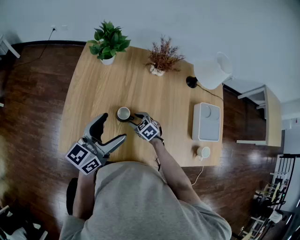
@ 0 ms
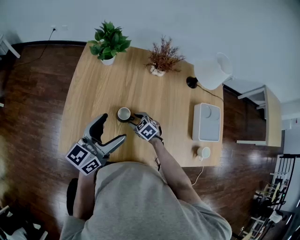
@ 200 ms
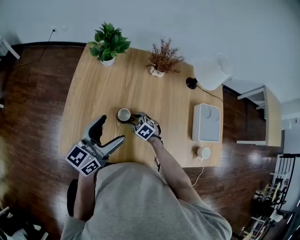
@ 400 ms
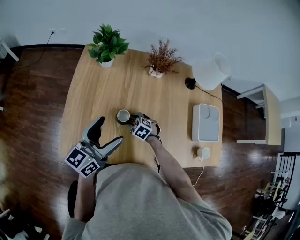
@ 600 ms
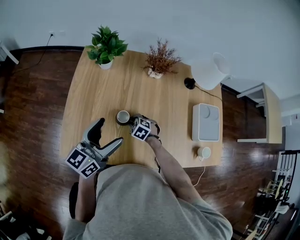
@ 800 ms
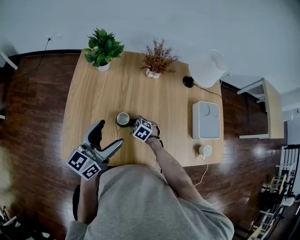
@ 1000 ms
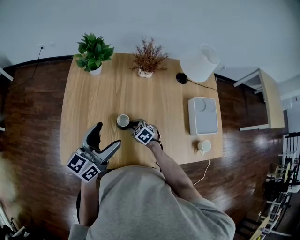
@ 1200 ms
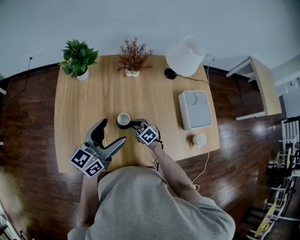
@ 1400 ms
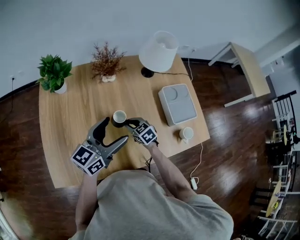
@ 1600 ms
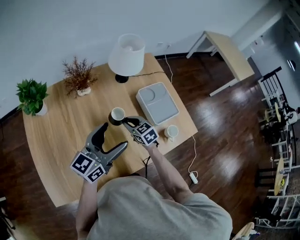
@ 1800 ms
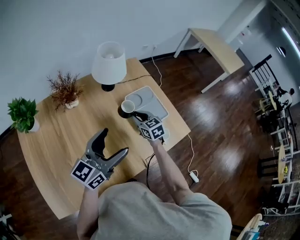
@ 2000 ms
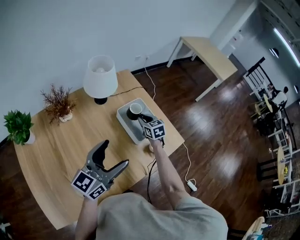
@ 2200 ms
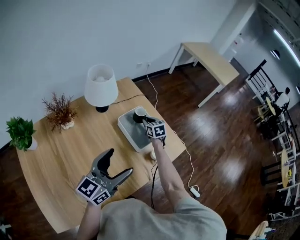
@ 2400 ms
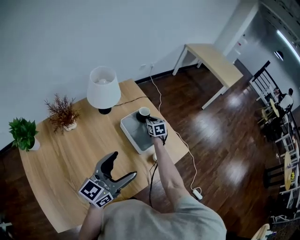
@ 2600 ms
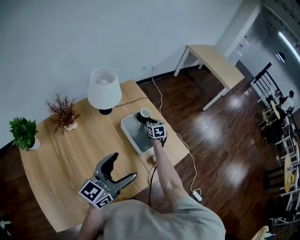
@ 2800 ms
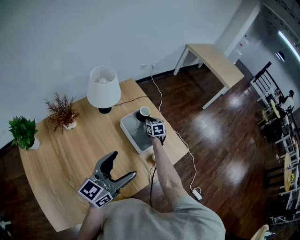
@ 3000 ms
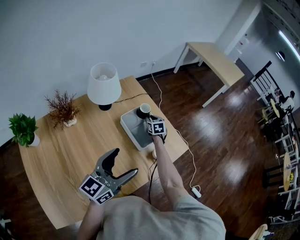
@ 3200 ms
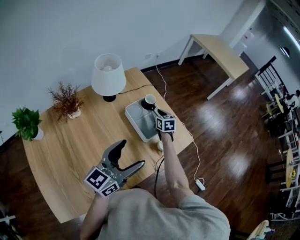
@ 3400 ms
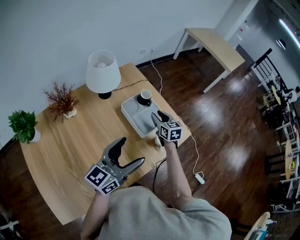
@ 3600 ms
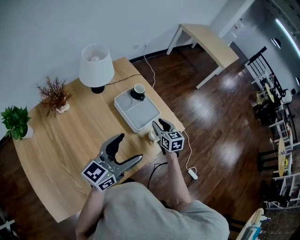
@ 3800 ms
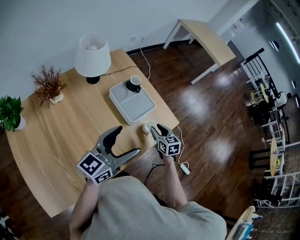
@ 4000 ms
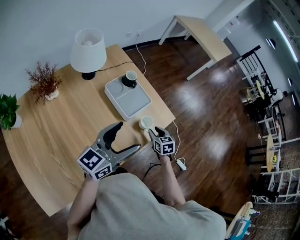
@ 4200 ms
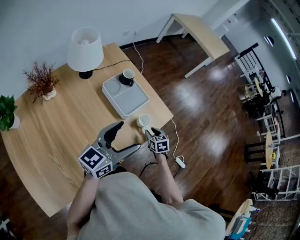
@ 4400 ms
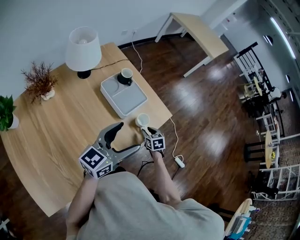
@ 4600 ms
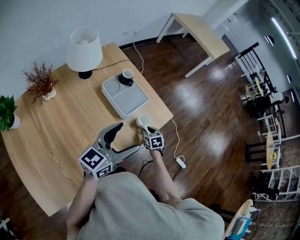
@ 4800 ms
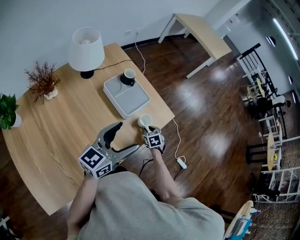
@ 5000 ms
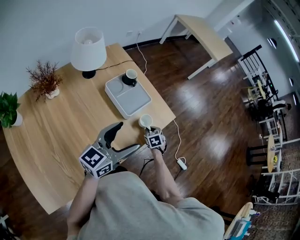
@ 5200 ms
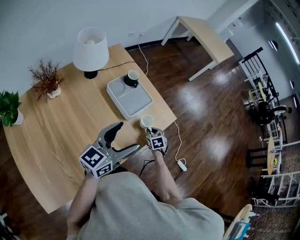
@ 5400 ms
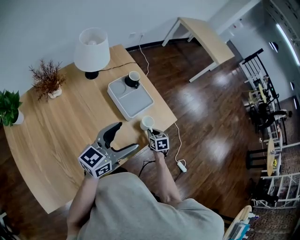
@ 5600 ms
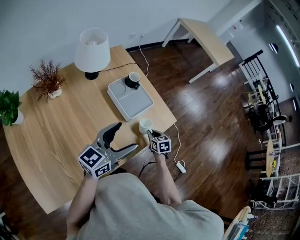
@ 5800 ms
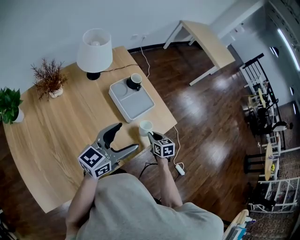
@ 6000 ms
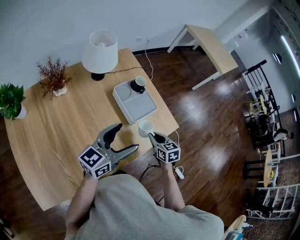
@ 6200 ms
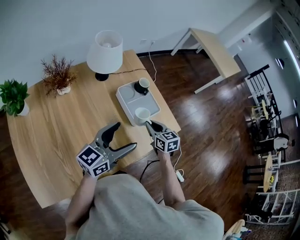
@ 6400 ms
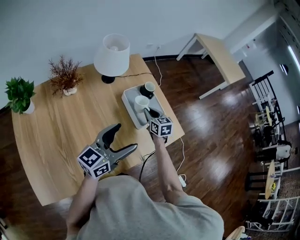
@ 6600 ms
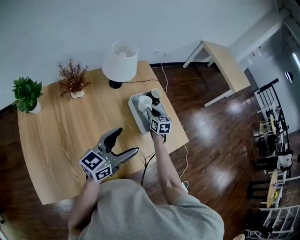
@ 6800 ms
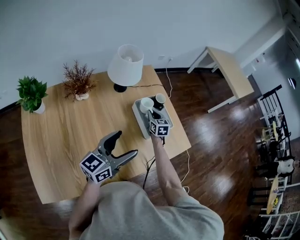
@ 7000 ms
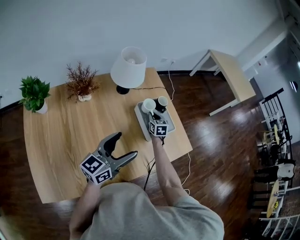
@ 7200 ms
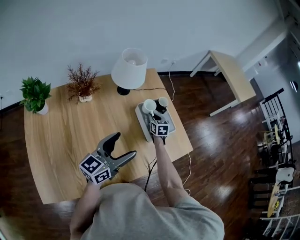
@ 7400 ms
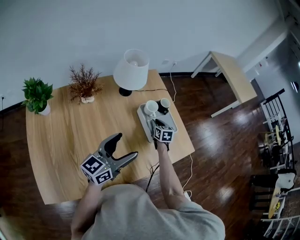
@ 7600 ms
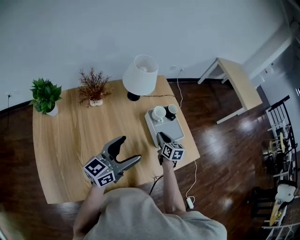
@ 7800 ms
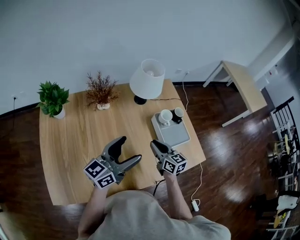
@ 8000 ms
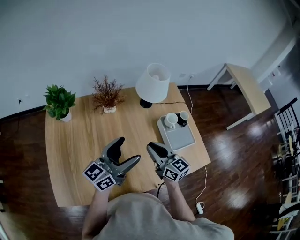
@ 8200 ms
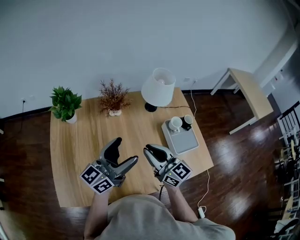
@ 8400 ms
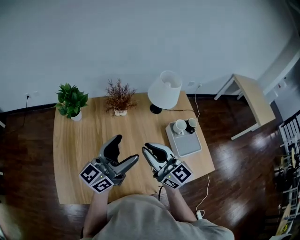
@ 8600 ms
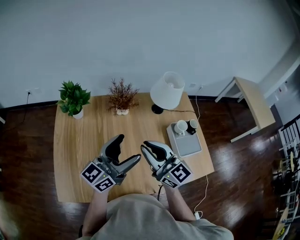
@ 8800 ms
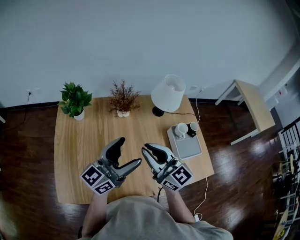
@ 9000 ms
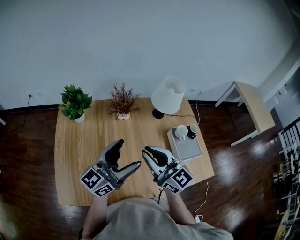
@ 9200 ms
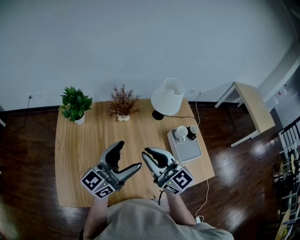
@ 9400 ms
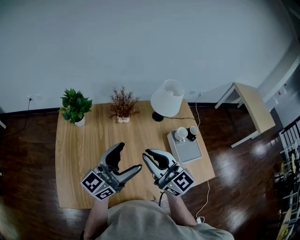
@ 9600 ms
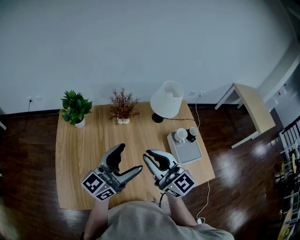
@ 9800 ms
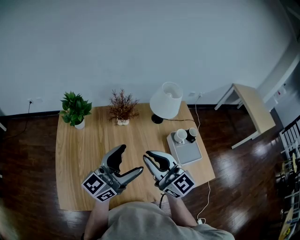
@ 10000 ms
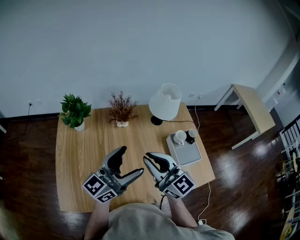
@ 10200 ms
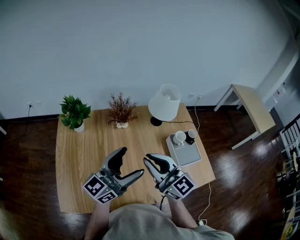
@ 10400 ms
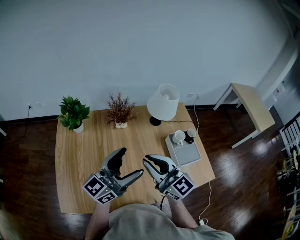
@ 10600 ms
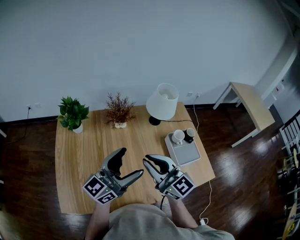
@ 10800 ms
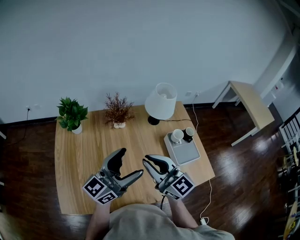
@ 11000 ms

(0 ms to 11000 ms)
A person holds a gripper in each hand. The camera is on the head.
0 ms - 1600 ms: Both grippers move to the right, about 15 cm. The left gripper changes its angle by about 20 degrees, while the right gripper swivels roughly 30 degrees, and closes.
1600 ms - 3200 ms: The left gripper moves approximately 20 cm, and turns by about 20 degrees, while the right gripper travels upward and back again, about 10 cm each way, and turns by some 50 degrees.
3200 ms - 4800 ms: The right gripper moves backward and to the right, approximately 30 cm, while the left gripper travels to the right by approximately 10 cm.
4800 ms - 6200 ms: The right gripper moves upward, about 15 cm.
6200 ms - 7800 ms: The left gripper goes roughly 10 cm to the left, while the right gripper is displaced to the left and forward by approximately 15 cm.
7800 ms - 9400 ms: The right gripper heads to the left and upward, covering approximately 40 cm, and angles its fingers upward, by about 30 degrees; the left gripper is displaced to the left and upward by some 15 cm.
9400 ms - 11000 ms: There are only small adjustments of the grippers.

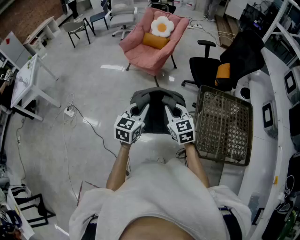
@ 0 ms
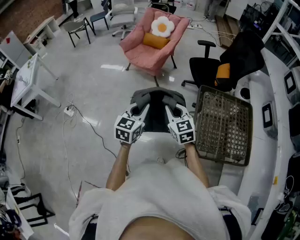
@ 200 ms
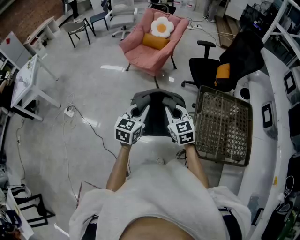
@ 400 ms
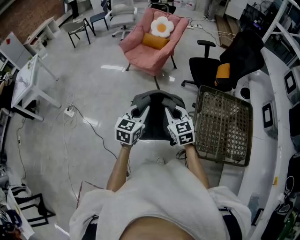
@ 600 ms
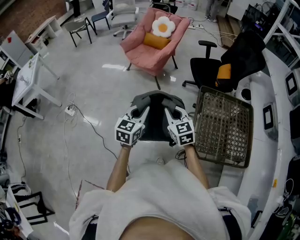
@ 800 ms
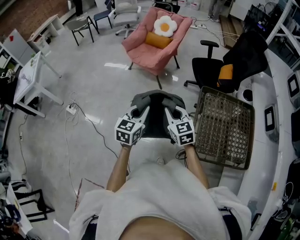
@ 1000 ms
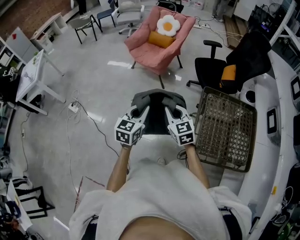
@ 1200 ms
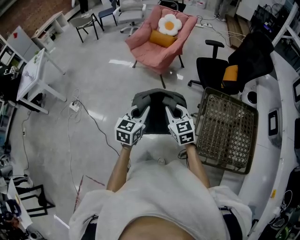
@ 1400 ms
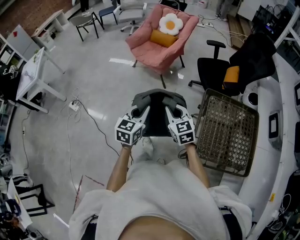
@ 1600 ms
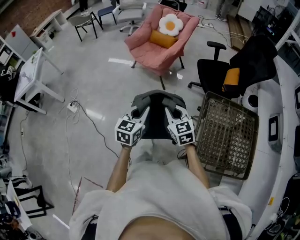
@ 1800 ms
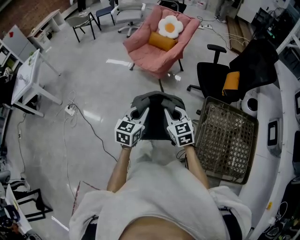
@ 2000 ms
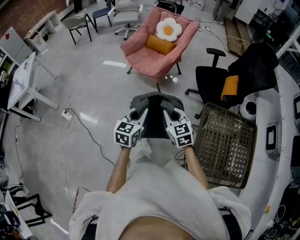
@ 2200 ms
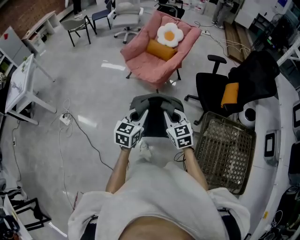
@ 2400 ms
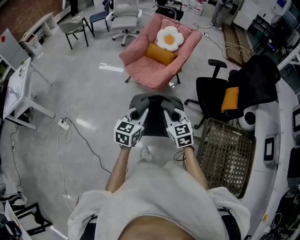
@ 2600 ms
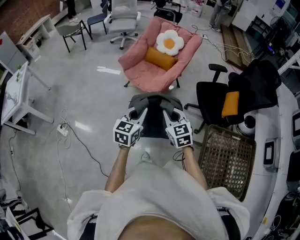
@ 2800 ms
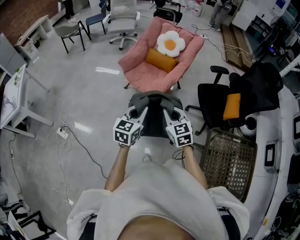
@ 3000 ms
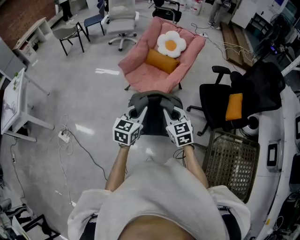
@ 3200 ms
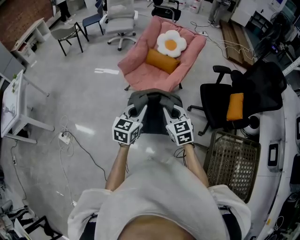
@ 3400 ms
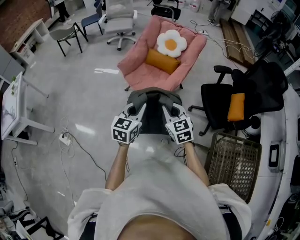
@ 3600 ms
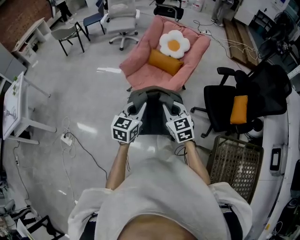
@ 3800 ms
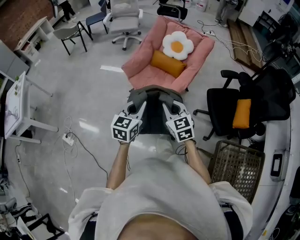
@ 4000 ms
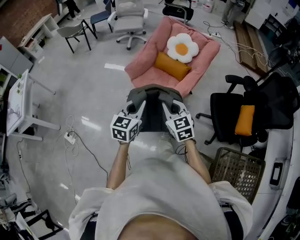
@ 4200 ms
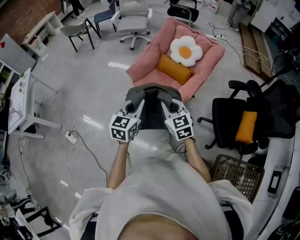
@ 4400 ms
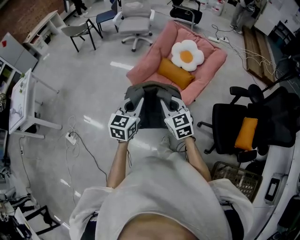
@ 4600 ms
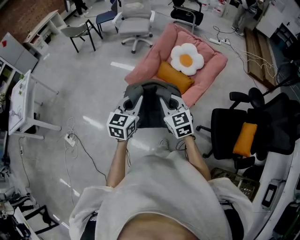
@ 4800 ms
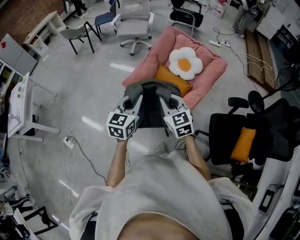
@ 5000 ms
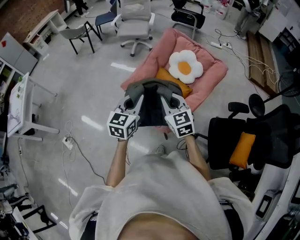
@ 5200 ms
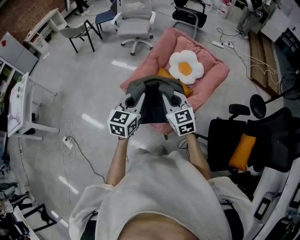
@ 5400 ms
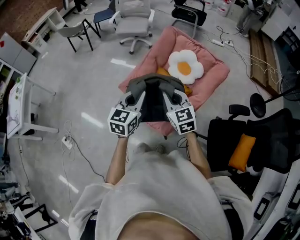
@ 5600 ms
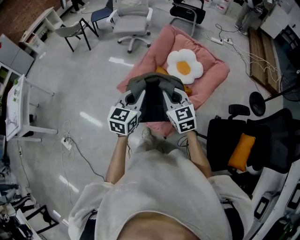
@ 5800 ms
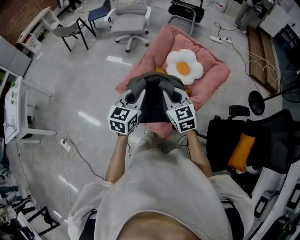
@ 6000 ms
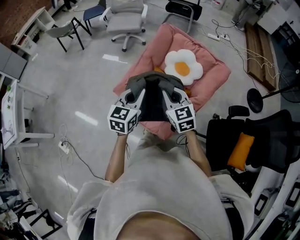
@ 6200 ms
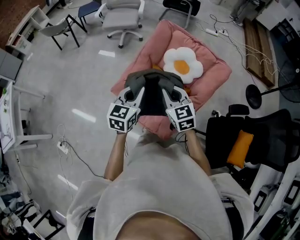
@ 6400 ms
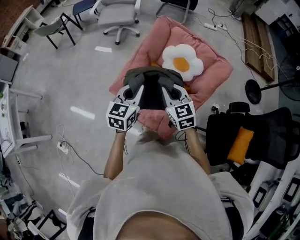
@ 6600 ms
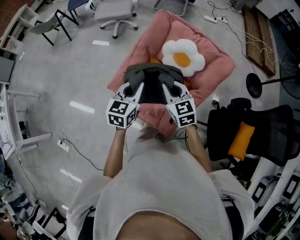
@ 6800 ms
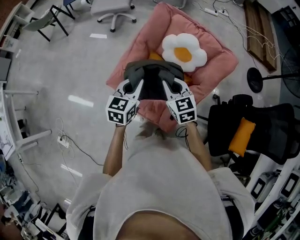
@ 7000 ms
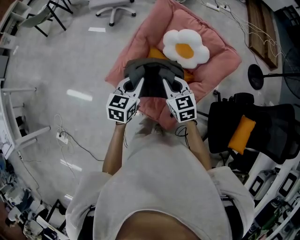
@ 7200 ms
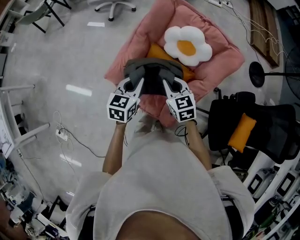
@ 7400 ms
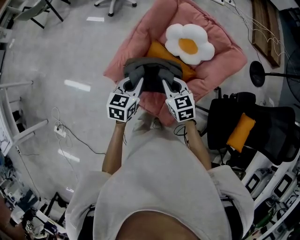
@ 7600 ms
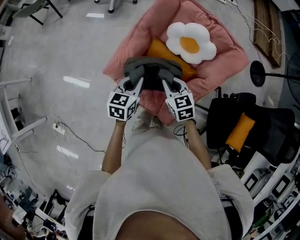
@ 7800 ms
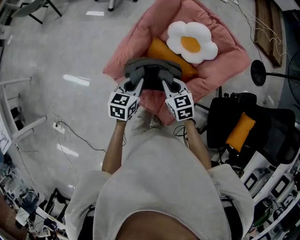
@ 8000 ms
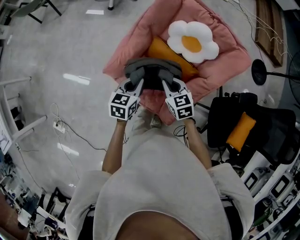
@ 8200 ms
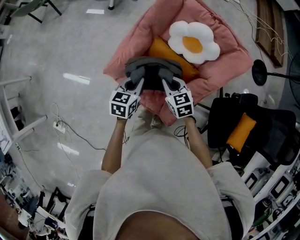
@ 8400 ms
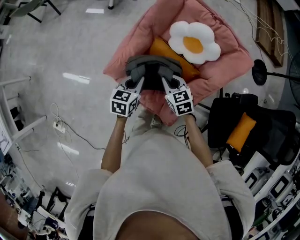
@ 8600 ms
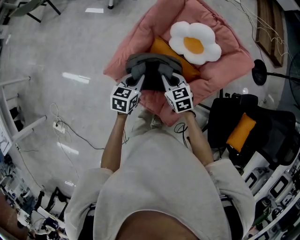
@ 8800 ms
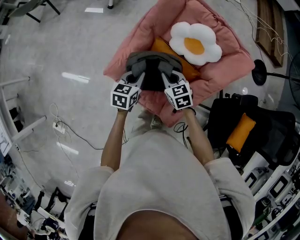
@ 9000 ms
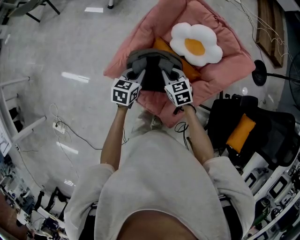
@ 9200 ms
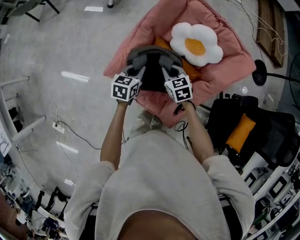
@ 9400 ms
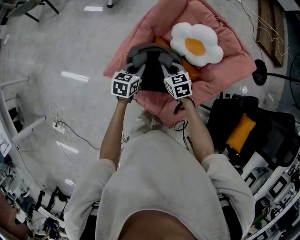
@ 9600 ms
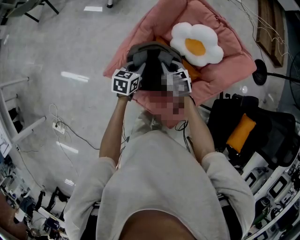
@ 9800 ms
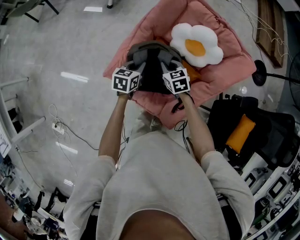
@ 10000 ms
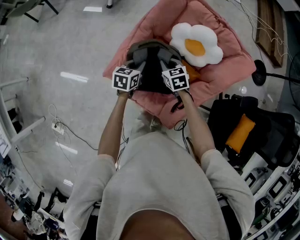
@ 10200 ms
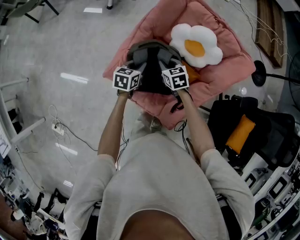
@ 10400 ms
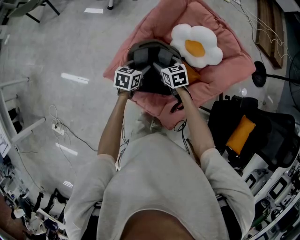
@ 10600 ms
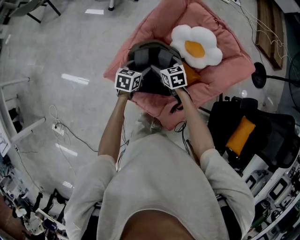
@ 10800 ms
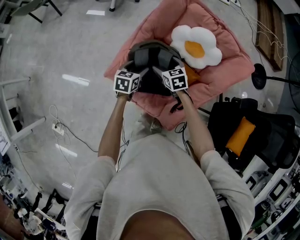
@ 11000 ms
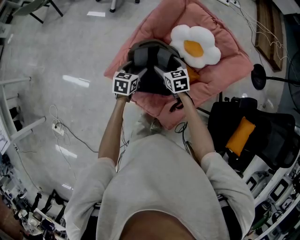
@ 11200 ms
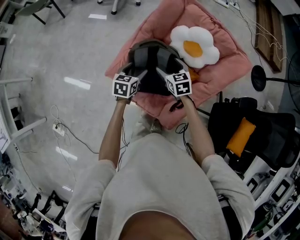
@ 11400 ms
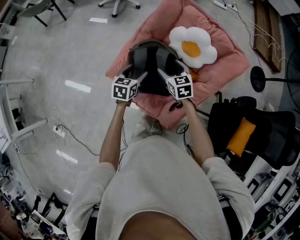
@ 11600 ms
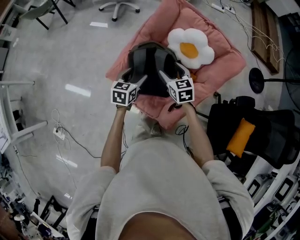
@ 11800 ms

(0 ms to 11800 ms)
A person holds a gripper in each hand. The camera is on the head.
0 ms - 1400 ms: The grippers stay close to where they were, moving slightly.
1400 ms - 3000 ms: The two grippers go about 40 cm forward.
3000 ms - 4400 ms: The grippers both shift forward by about 25 cm.
4400 ms - 6000 ms: The two grippers go some 30 cm forward.
6000 ms - 7400 ms: The right gripper is displaced downward and forward by roughly 20 cm. Meanwhile the left gripper travels forward and downward by roughly 20 cm.
7400 ms - 8800 ms: The grippers both shift downward by some 10 cm.
8800 ms - 10400 ms: Both grippers travel together forward and downward, approximately 10 cm.
10400 ms - 11800 ms: The right gripper is displaced upward and backward by some 15 cm, and opens. Meanwhile the left gripper goes about 10 cm backward and upward, and opens.

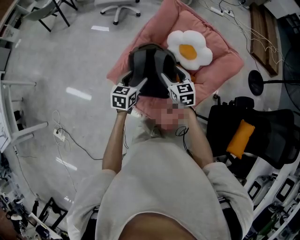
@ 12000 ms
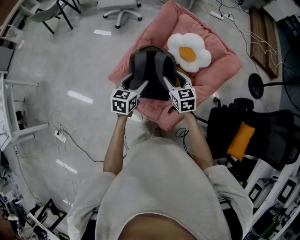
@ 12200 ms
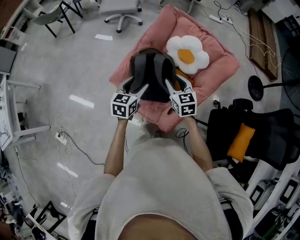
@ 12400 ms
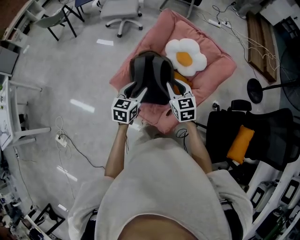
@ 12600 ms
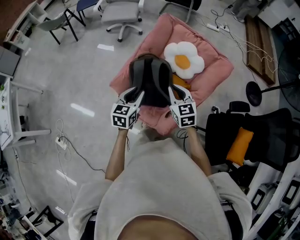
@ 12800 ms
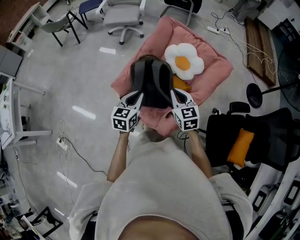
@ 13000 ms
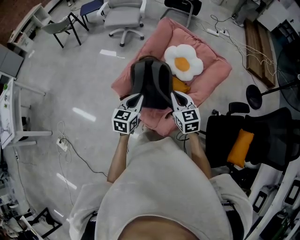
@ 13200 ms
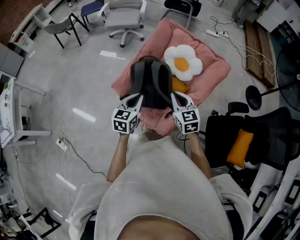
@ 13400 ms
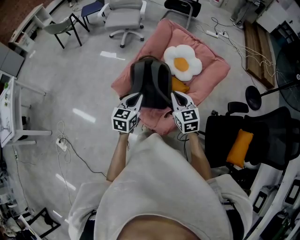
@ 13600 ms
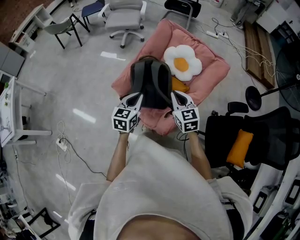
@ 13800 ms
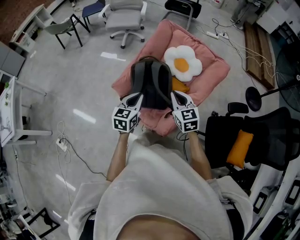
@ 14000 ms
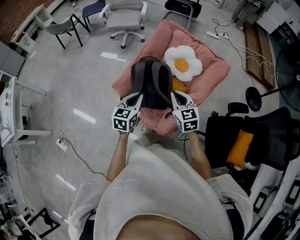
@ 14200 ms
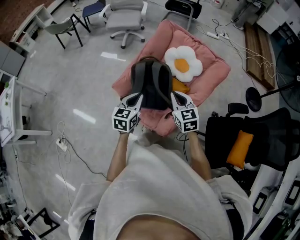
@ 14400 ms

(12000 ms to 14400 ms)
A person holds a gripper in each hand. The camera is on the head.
12000 ms - 13200 ms: The two grippers go approximately 15 cm backward and upward. The left gripper closes up. Meanwhile the right gripper closes up.
13200 ms - 14400 ms: Both grippers stay put.
